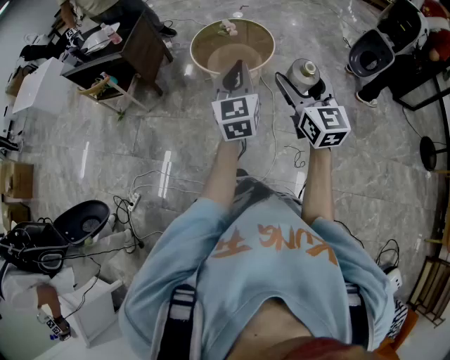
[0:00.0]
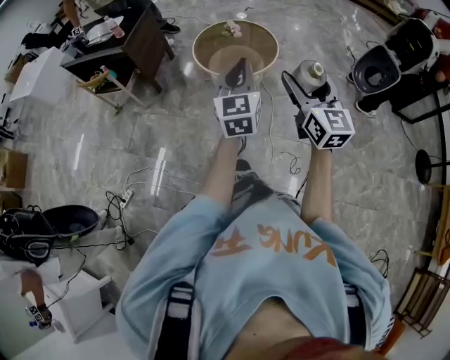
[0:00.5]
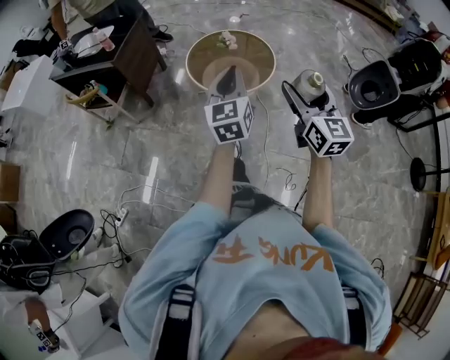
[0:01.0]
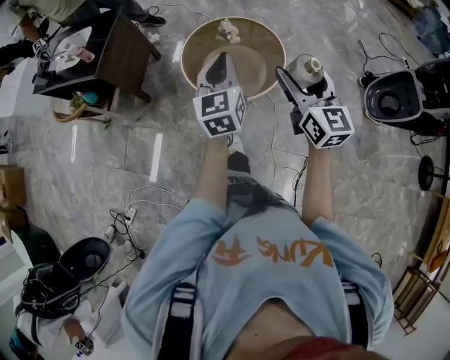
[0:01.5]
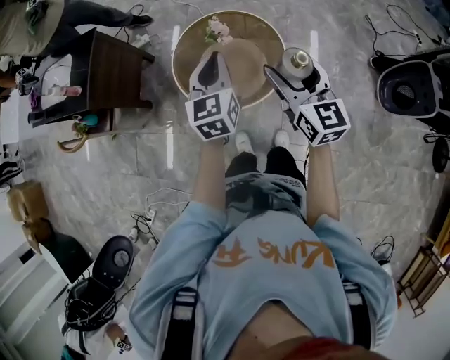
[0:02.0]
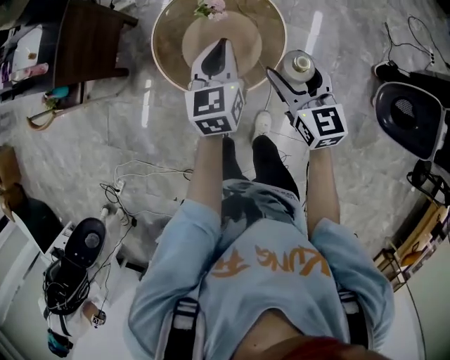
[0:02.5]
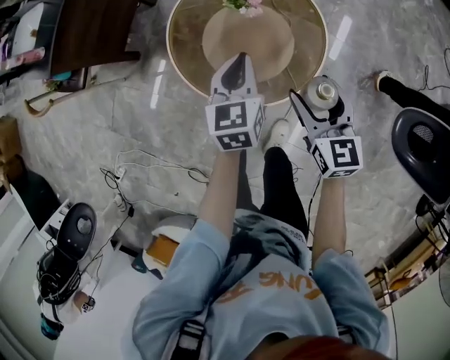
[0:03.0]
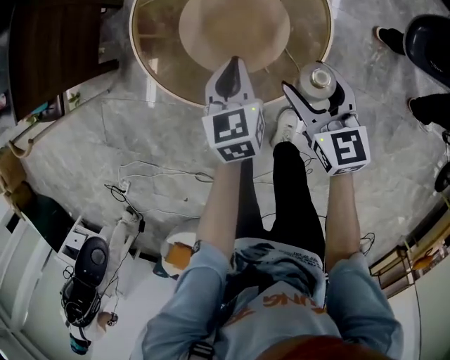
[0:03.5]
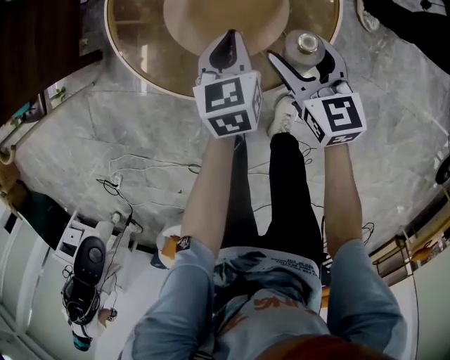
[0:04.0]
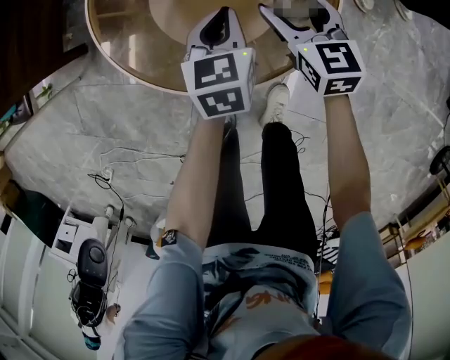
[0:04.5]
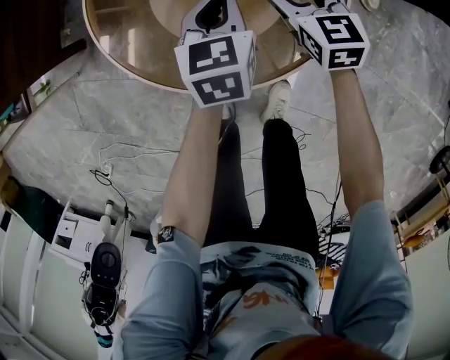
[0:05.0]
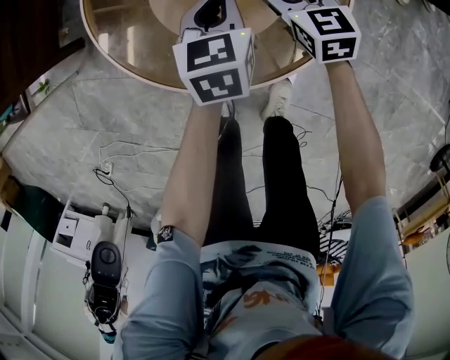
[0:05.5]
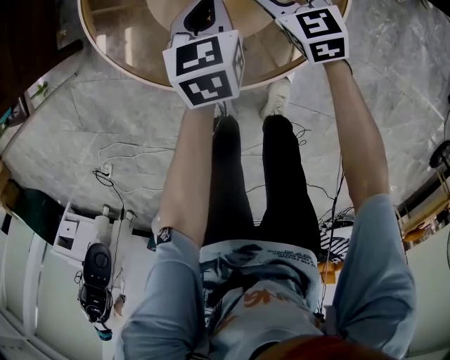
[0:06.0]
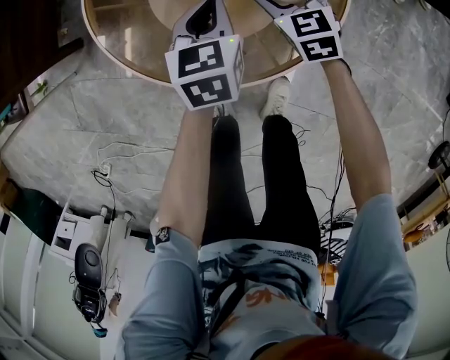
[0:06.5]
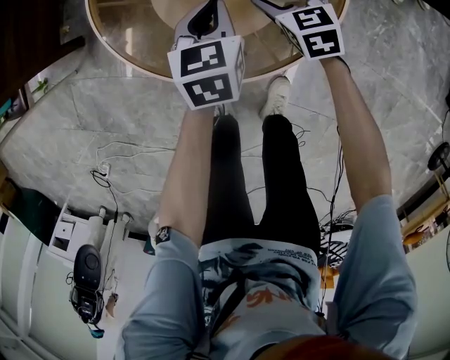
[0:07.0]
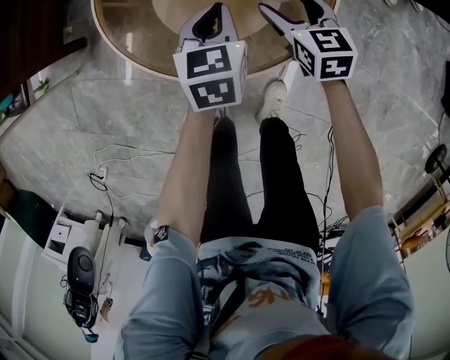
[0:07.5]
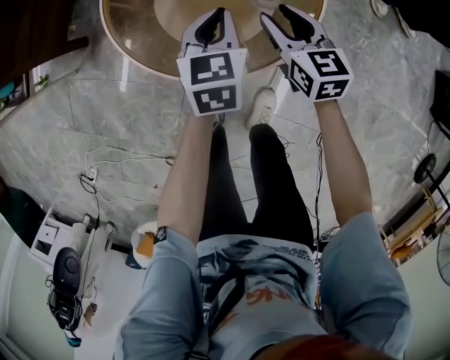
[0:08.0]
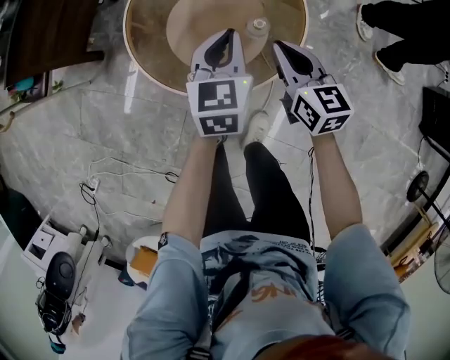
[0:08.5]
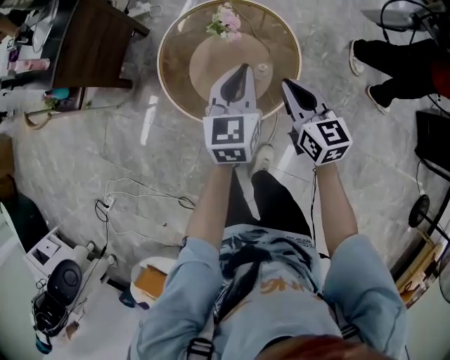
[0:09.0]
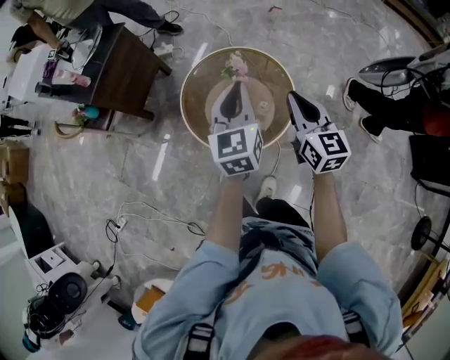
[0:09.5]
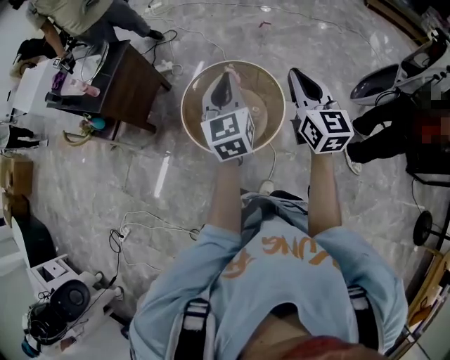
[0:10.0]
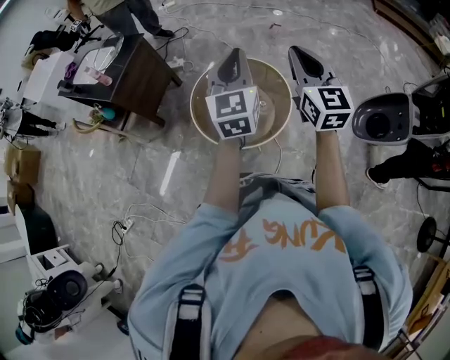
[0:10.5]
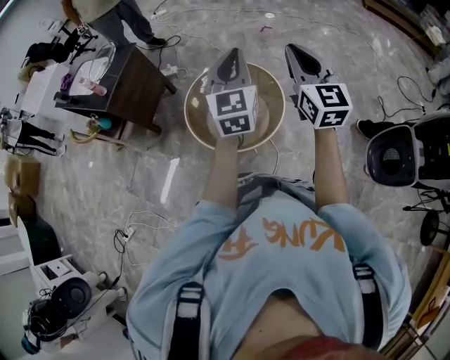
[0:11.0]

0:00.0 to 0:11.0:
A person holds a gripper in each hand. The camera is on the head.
0:00.0 to 0:02.0: The two grippers travel together, forward, about 50 cm.
0:02.0 to 0:03.5: Both grippers move downward, roughly 40 cm. The right gripper turns by roughly 30 degrees. The left gripper swivels about 20 degrees.
0:03.5 to 0:05.5: The right gripper travels downward and forward by roughly 25 cm; the left gripper travels downward and forward by about 15 cm.
0:05.5 to 0:07.5: Both grippers move backward, approximately 5 cm.
0:07.5 to 0:09.0: Both grippers travel together upward, some 30 cm. The left gripper rotates about 20 degrees, while the right gripper closes up.
0:09.0 to 0:11.0: Both grippers move upward, about 30 cm. The right gripper rotates some 30 degrees, while the left gripper changes its angle by some 20 degrees.

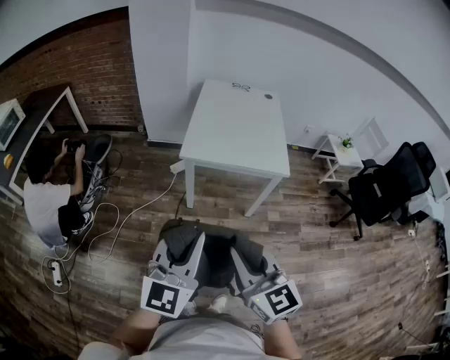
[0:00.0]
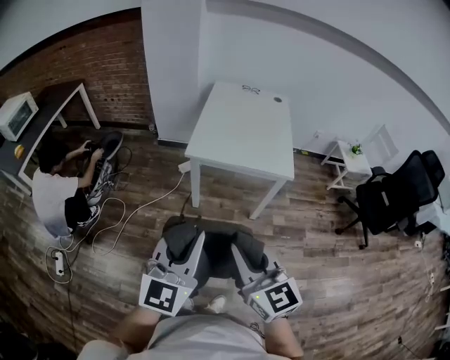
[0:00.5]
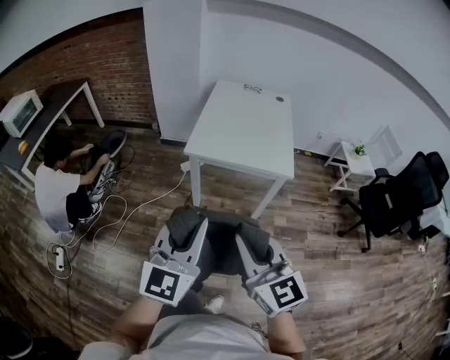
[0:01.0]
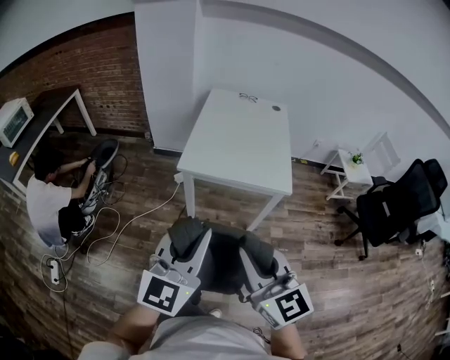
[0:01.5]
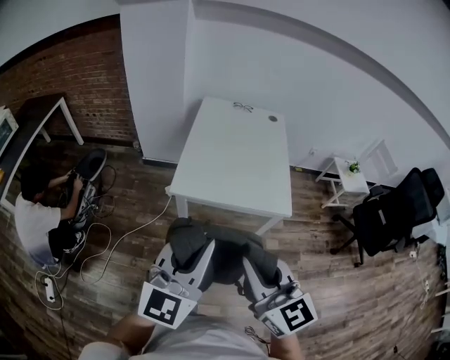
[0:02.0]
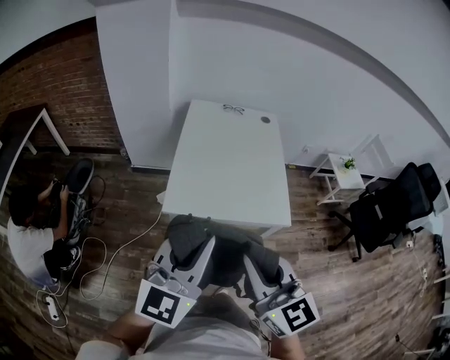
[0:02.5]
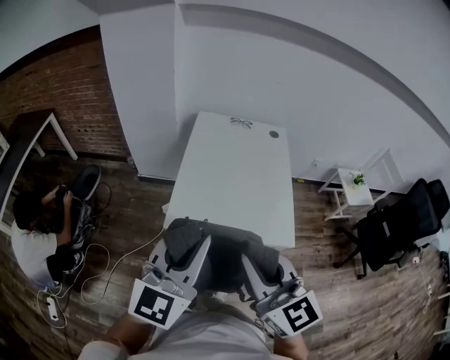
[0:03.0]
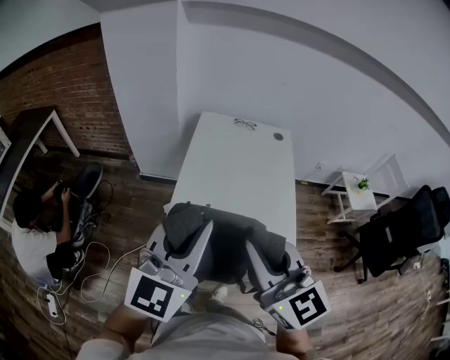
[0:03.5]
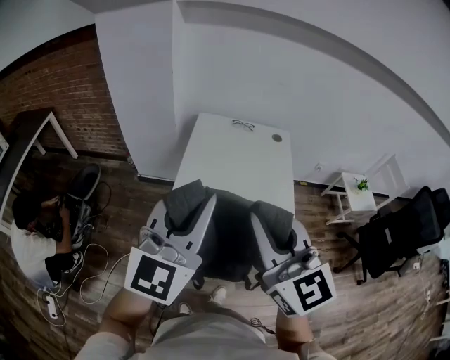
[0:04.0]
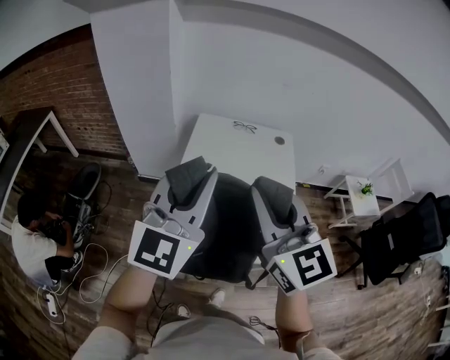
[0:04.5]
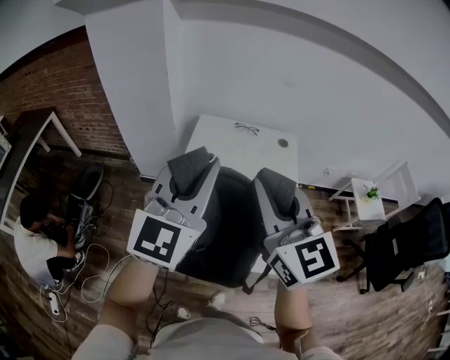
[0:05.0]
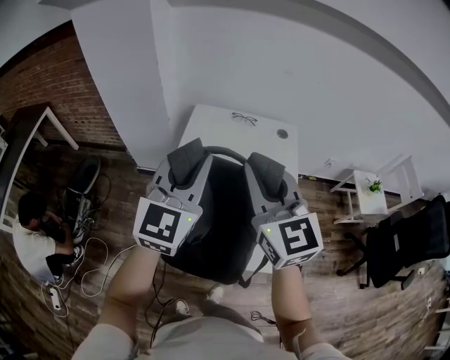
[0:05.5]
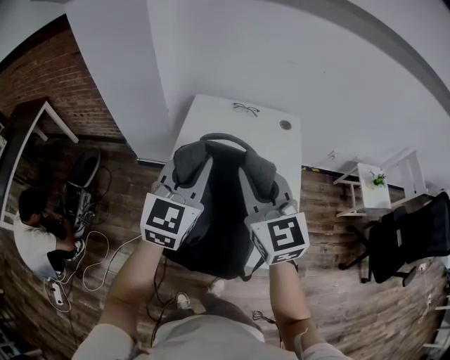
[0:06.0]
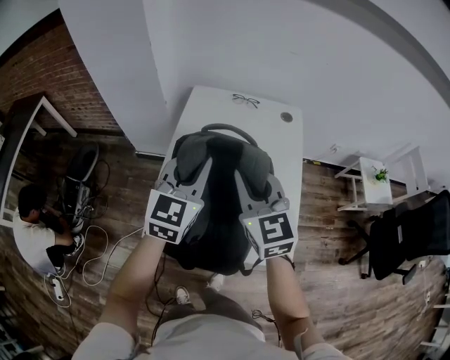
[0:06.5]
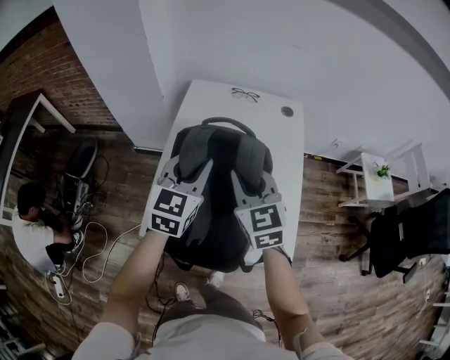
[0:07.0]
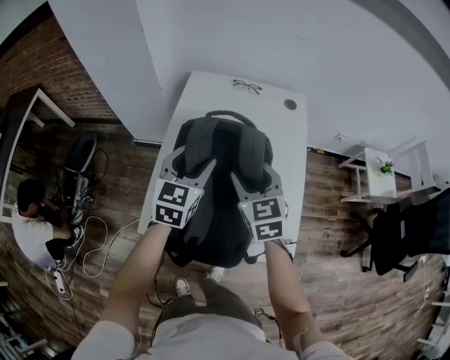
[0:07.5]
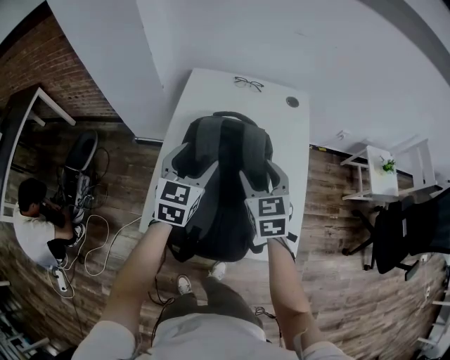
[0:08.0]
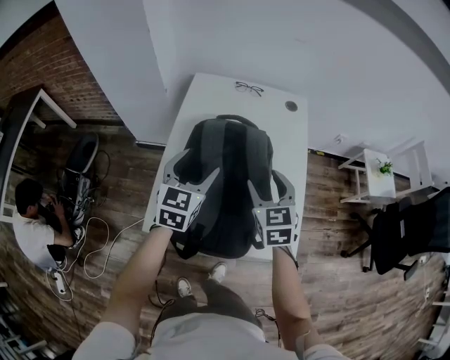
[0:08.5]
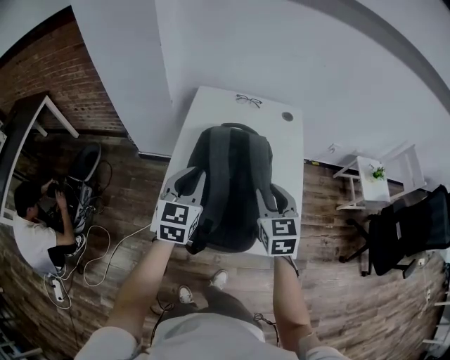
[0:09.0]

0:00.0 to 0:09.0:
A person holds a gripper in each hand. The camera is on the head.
0:00.0 to 0:02.0: Both grippers move forward and to the right, approximately 15 cm.
0:02.0 to 0:04.5: Both grippers move forward, about 35 cm.
0:04.5 to 0:07.0: Both grippers travel together downward and forward, some 30 cm. The right gripper rotates some 20 degrees; the left gripper turns by some 30 degrees.
0:07.0 to 0:09.0: The right gripper is displaced to the right and backward by roughly 10 cm, and opens up. The left gripper is displaced backward by approximately 5 cm, and opens, then closes again.

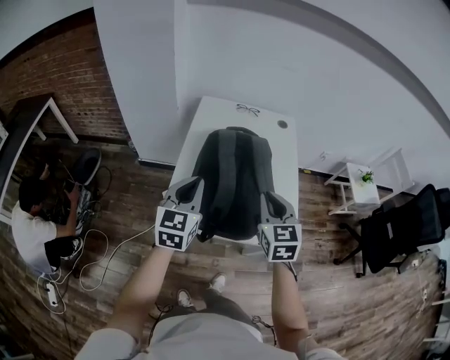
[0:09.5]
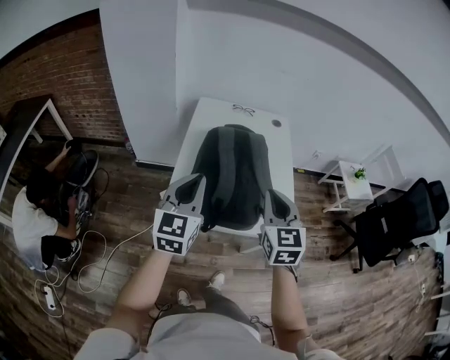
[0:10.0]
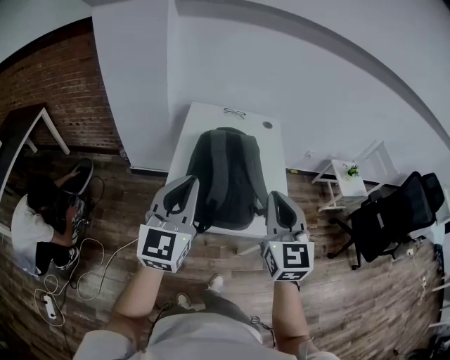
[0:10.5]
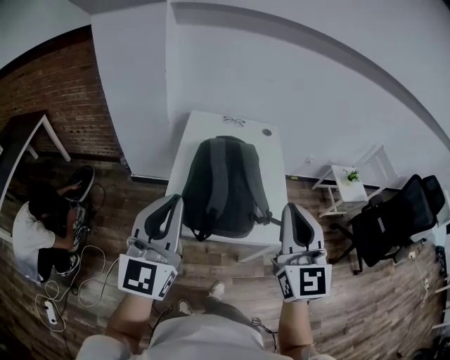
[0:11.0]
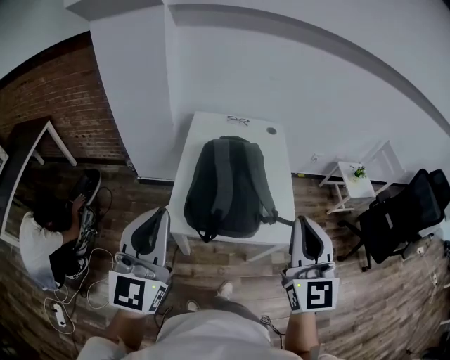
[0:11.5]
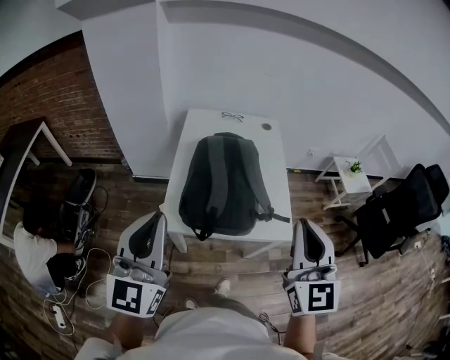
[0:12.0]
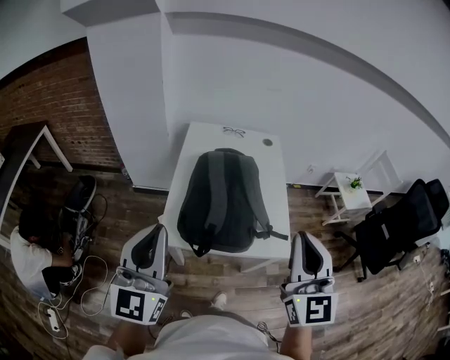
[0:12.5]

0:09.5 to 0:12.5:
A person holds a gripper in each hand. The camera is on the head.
0:09.5 to 0:11.0: Both grippers travel together upward and backward, roughly 25 cm. The left gripper turns by roughly 20 degrees. Meanwhile the right gripper changes its angle by roughly 30 degrees.
0:11.0 to 0:12.5: The grippers move only a little.

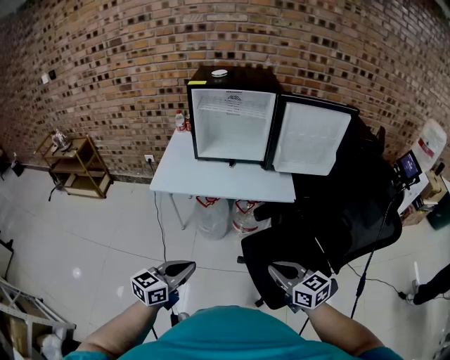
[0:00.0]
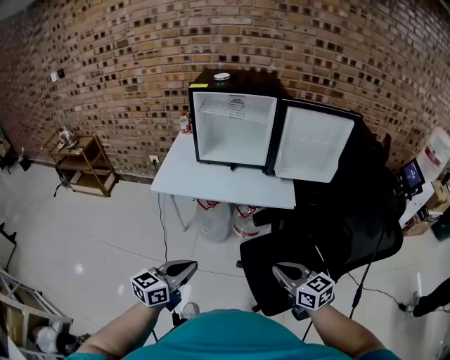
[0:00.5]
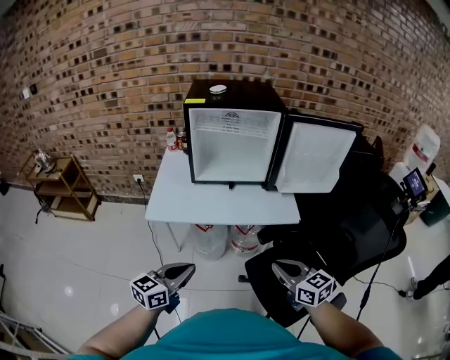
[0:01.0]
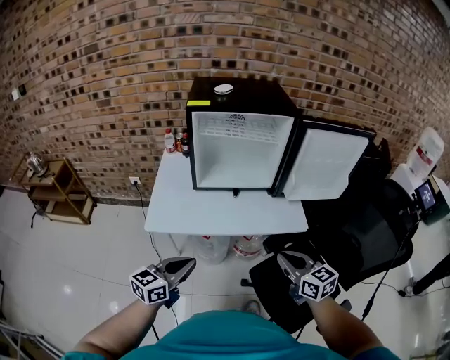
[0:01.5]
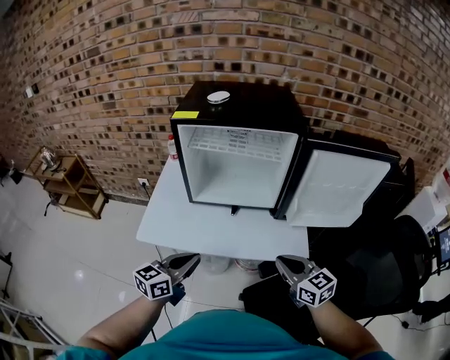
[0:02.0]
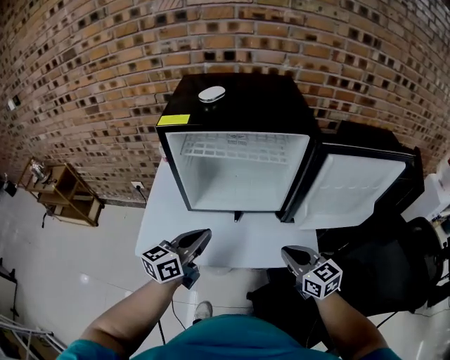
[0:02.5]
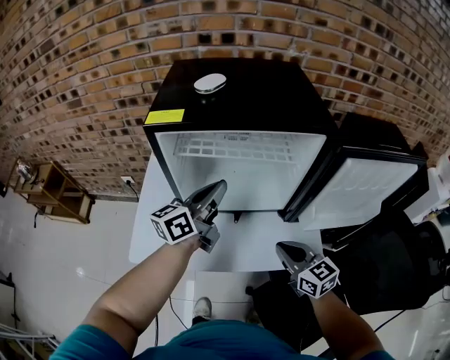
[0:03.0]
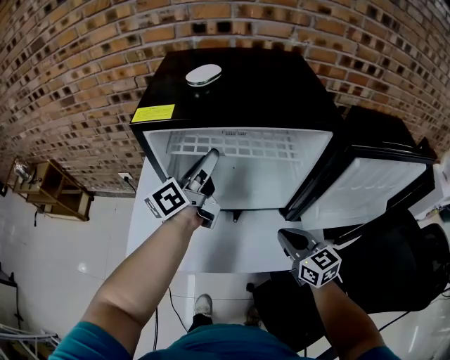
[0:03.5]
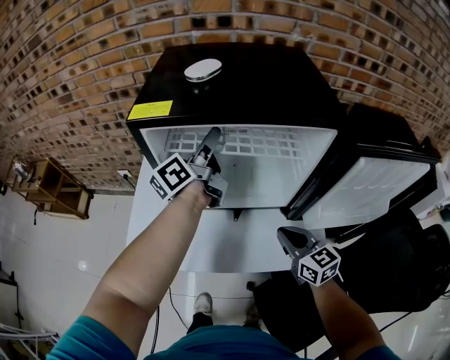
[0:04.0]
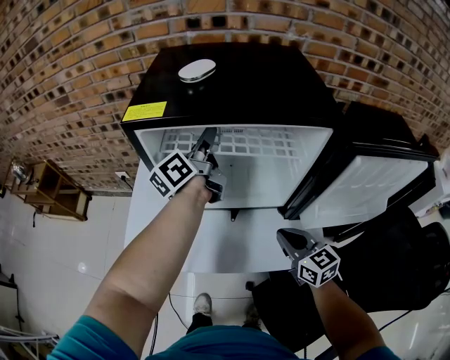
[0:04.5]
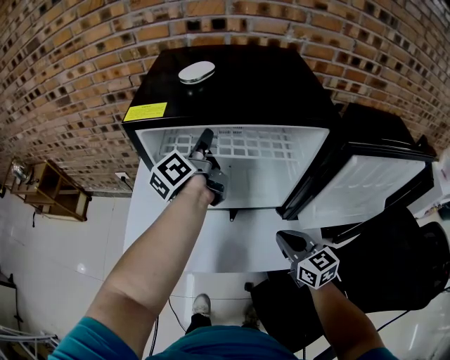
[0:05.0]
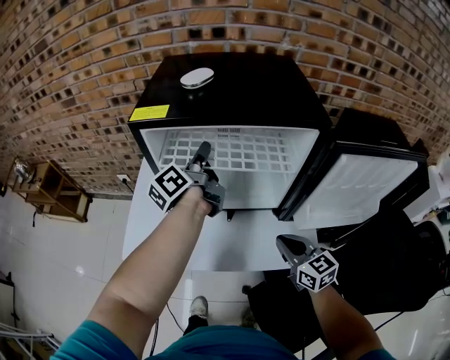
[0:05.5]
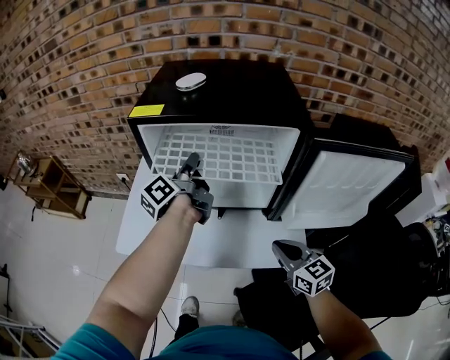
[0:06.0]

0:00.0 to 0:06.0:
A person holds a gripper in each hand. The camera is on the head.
0:00.0 to 0:02.0: The grippers both shift forward by roughly 30 cm.
0:02.0 to 0:04.0: The left gripper travels forward by some 40 cm, turns by approximately 40 degrees, and opens up. Meanwhile the right gripper shifts some 15 cm forward.
0:04.0 to 0:06.0: The two grippers go some 5 cm backward. The left gripper closes.
